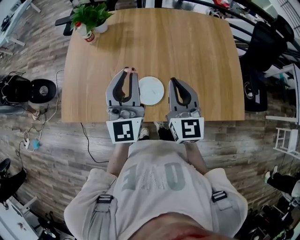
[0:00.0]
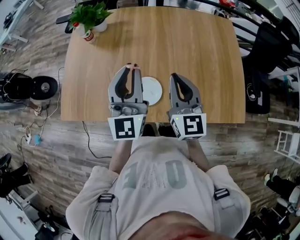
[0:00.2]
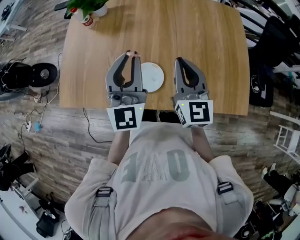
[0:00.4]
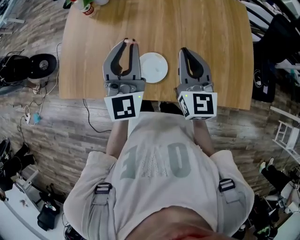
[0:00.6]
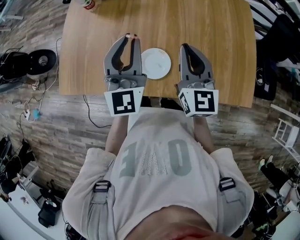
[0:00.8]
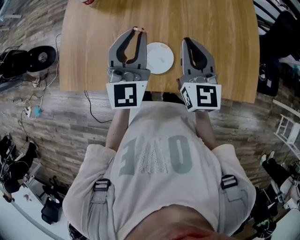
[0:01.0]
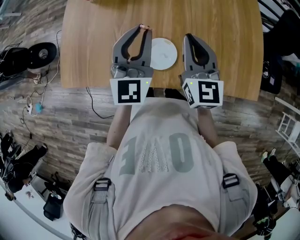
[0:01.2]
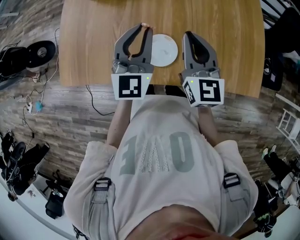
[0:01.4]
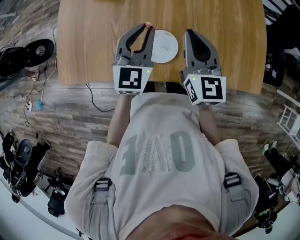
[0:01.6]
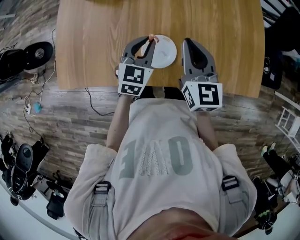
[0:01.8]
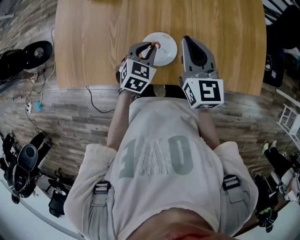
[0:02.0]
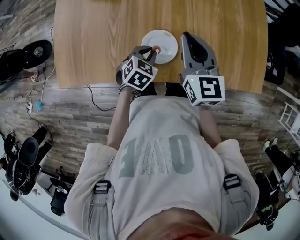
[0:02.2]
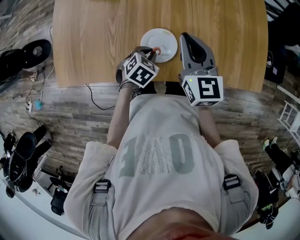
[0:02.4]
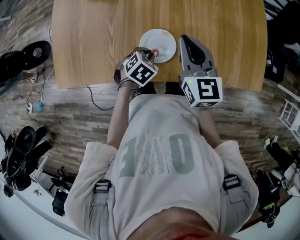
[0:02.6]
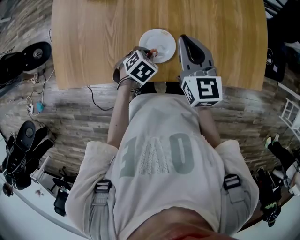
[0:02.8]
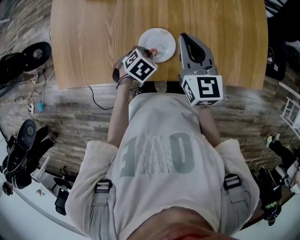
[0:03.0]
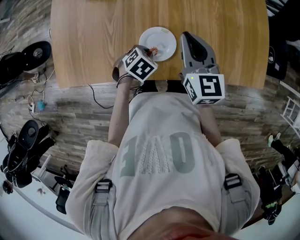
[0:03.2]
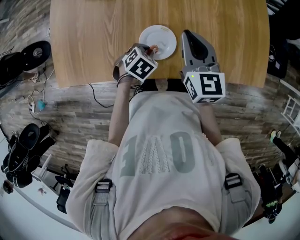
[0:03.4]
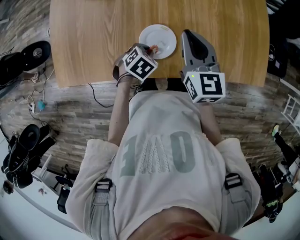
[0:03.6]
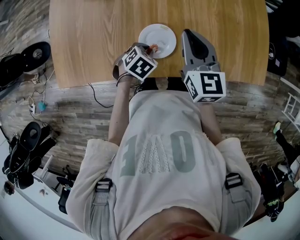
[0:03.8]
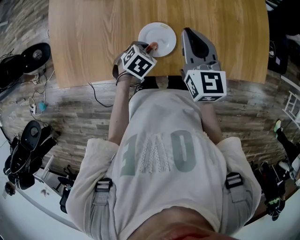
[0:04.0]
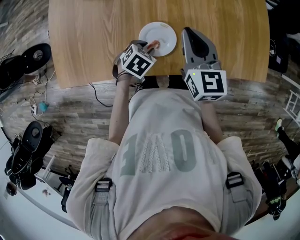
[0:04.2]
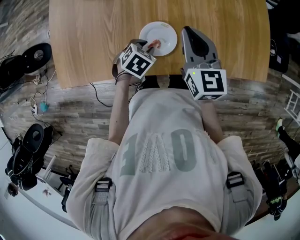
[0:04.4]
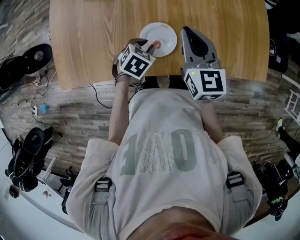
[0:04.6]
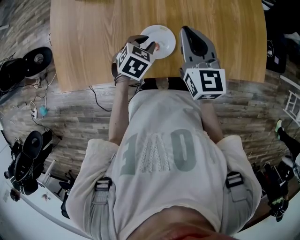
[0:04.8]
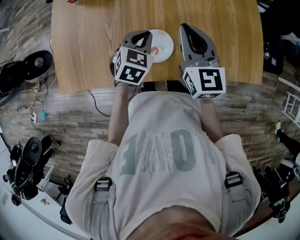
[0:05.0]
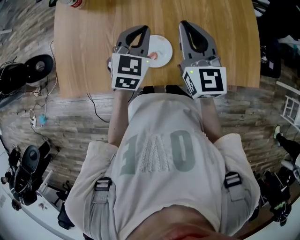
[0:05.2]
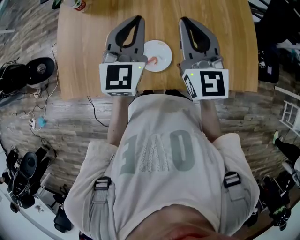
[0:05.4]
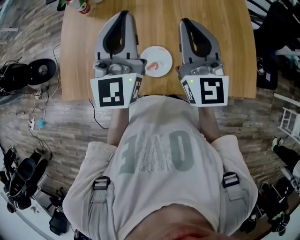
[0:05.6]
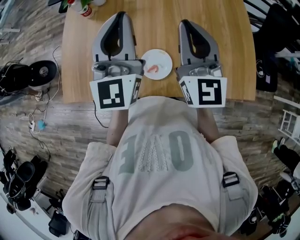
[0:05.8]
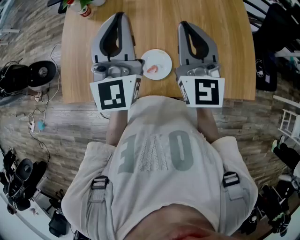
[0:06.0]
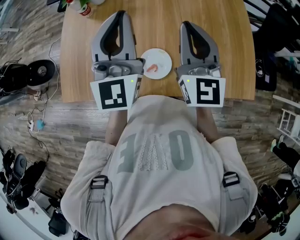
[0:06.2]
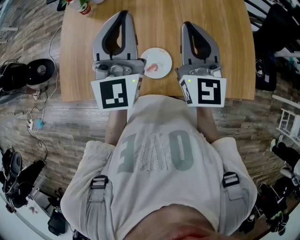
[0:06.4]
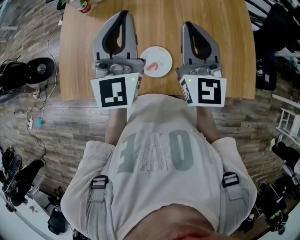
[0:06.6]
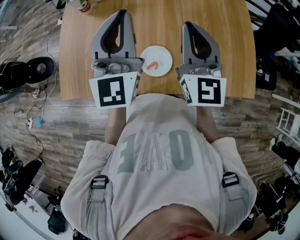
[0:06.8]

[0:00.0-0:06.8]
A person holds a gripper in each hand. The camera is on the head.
0.0 to 1.4 s: The right gripper ends up some 5 cm from where it was. Meanwhile the left gripper goes some 10 cm downward, and swivels roughly 20 degrees.
1.4 to 2.8 s: The right gripper heads downward, covering some 5 cm, while the left gripper travels downward by about 25 cm, and tilts its fingers some 70 degrees downward.
2.8 to 4.0 s: Both grippers stay put.
4.0 to 5.4 s: The right gripper heads upward, covering about 15 cm, and turns by roughly 20 degrees. The left gripper travels upward by some 30 cm, and points its fingers some 70 degrees further upward.
5.4 to 6.8 s: The left gripper heads upward, covering approximately 10 cm.

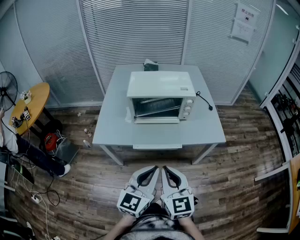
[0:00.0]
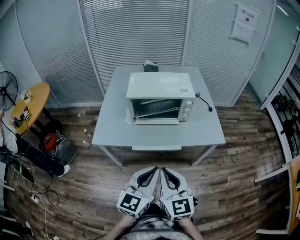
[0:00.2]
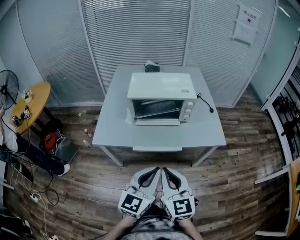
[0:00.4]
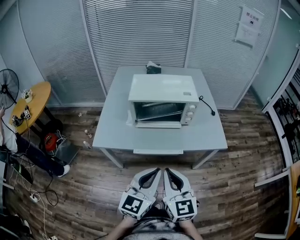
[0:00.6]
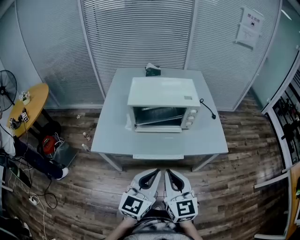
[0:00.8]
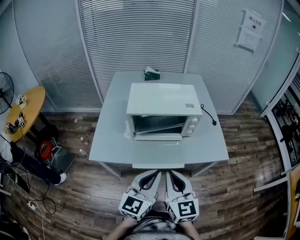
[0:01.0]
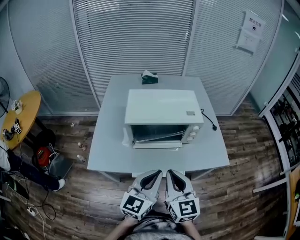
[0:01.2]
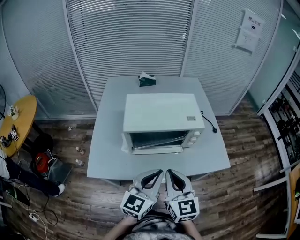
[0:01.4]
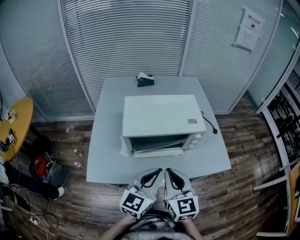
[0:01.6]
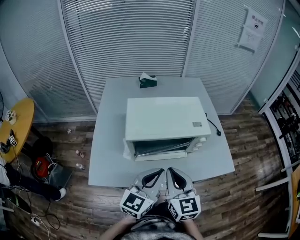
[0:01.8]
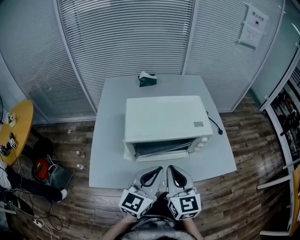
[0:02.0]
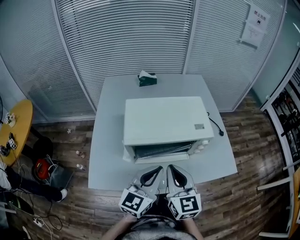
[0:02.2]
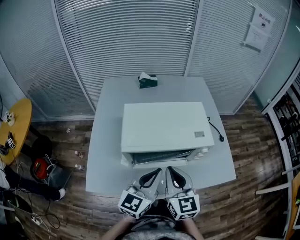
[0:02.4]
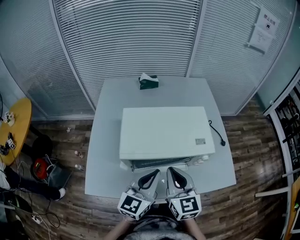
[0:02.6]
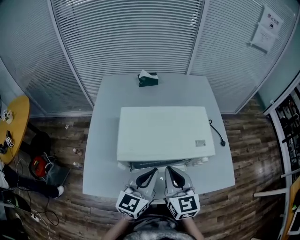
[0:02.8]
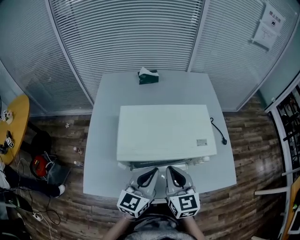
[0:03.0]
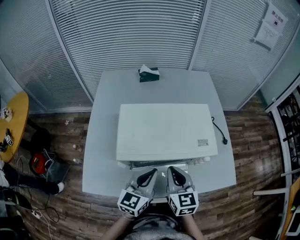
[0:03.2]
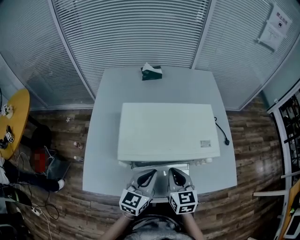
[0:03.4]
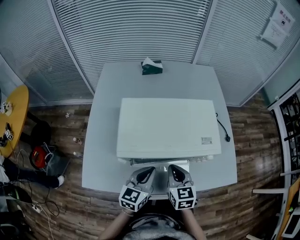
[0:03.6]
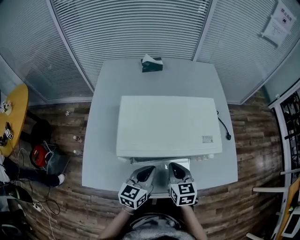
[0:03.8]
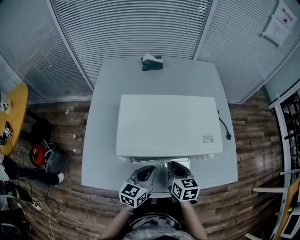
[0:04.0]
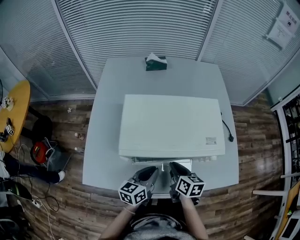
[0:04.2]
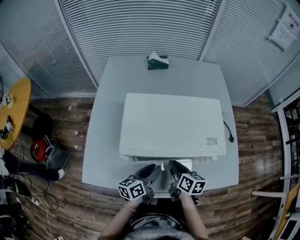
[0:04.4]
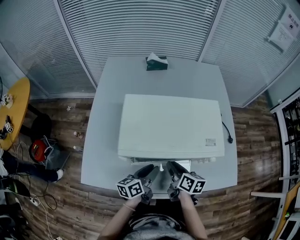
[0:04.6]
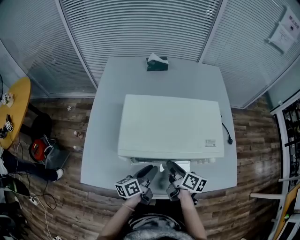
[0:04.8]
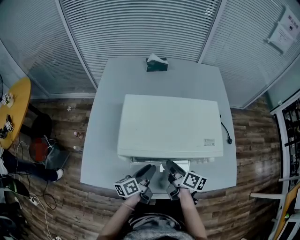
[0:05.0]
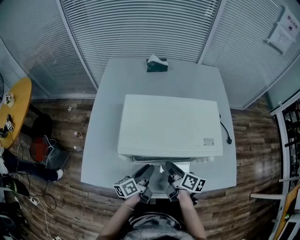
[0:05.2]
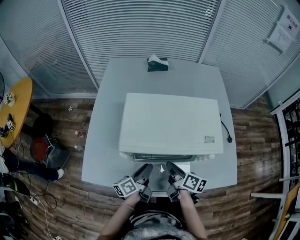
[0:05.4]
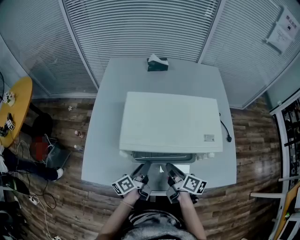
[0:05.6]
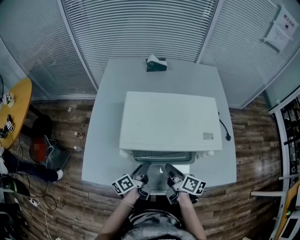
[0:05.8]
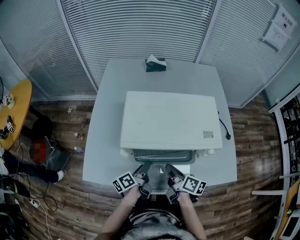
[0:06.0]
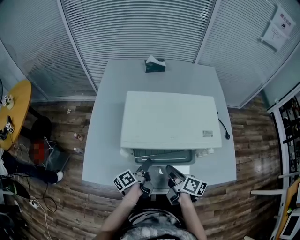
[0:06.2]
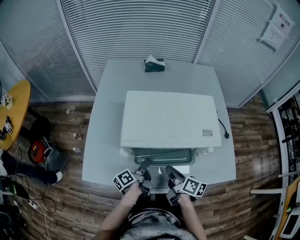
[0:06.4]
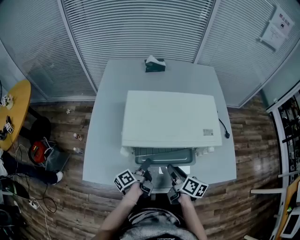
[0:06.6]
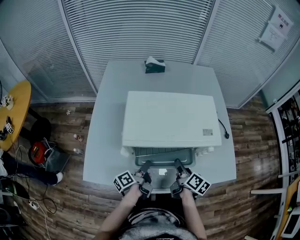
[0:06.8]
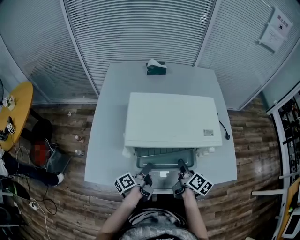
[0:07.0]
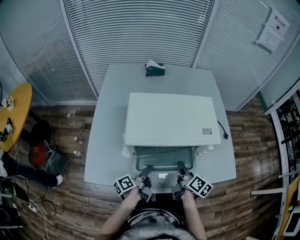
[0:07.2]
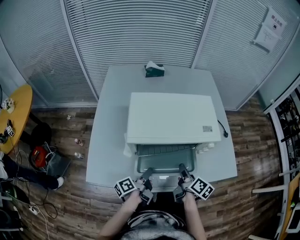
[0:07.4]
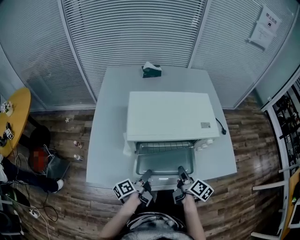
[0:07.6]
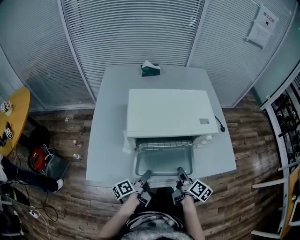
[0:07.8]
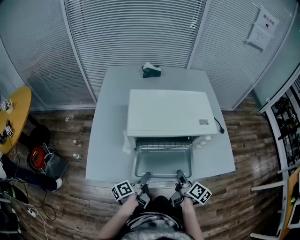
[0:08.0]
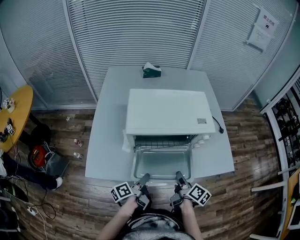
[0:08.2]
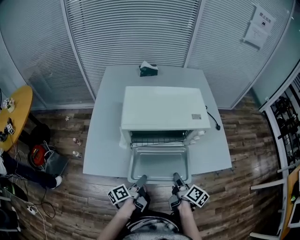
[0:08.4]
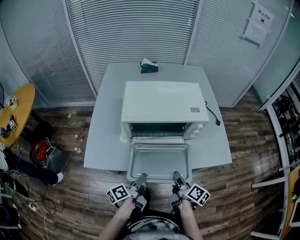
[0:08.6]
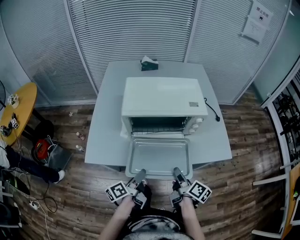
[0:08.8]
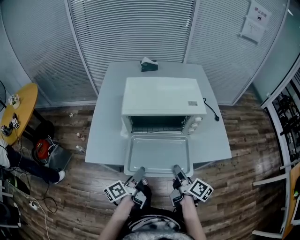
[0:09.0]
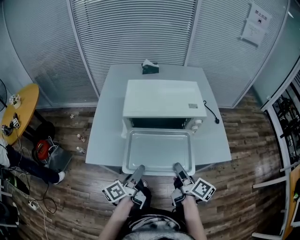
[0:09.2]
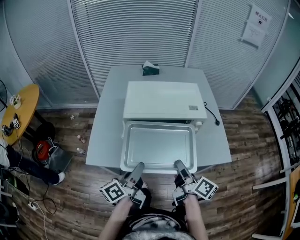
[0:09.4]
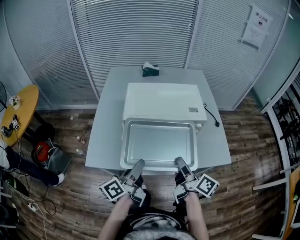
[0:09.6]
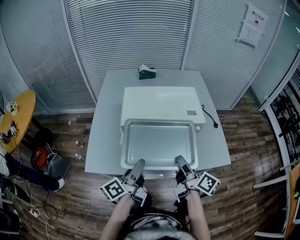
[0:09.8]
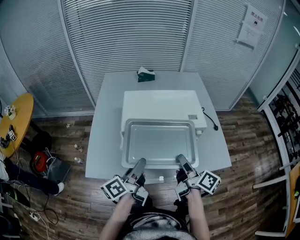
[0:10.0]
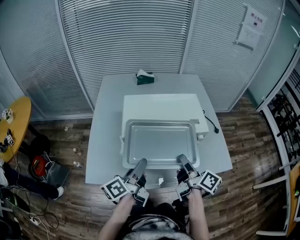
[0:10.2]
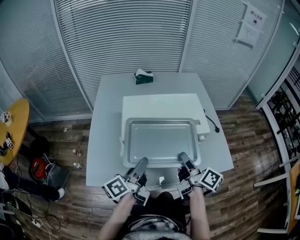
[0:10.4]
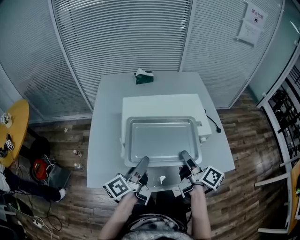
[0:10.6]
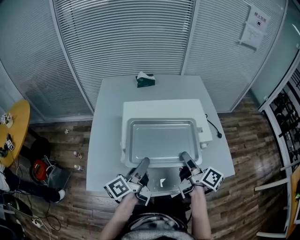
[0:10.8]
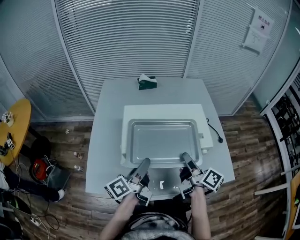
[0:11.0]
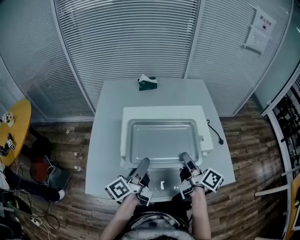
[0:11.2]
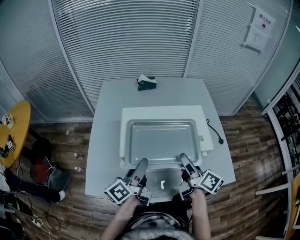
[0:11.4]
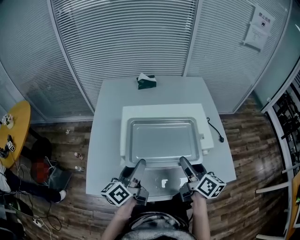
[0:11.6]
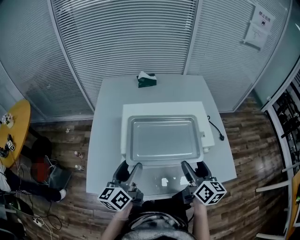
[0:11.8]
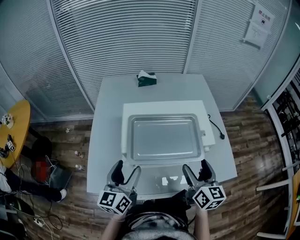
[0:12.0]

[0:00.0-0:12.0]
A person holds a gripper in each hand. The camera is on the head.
0.0 to 1.6 s: The two grippers go some 25 cm forward.
1.6 to 3.0 s: The grippers both shift forward by about 15 cm.
3.0 to 4.4 s: The grippers both shift downward by roughly 15 cm. The left gripper rolls counterclockwise, seen from behind, by about 40 degrees, and opens its fingers. The right gripper swivels some 40 degrees.
4.4 to 6.0 s: The left gripper moves roughly 5 cm, and changes its angle by about 30 degrees.
6.0 to 7.6 s: The left gripper is displaced backward by roughly 10 cm. The right gripper goes approximately 10 cm to the right and backward, and turns by about 20 degrees.
7.6 to 9.0 s: The grippers both shift backward and upward by about 15 cm.
9.0 to 10.4 s: The grippers both shift forward and upward by approximately 15 cm.
10.4 to 12.0 s: The right gripper reaches some 10 cm forward, then returns, twists roughly 40 degrees counterclockwise, seen from behind, and opens; the left gripper heads to the left, covering roughly 5 cm, twists some 50 degrees clockwise, seen from behind, and opens up.

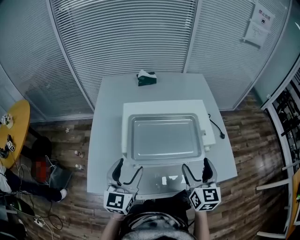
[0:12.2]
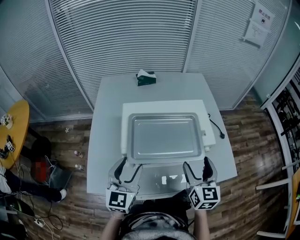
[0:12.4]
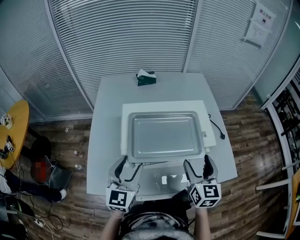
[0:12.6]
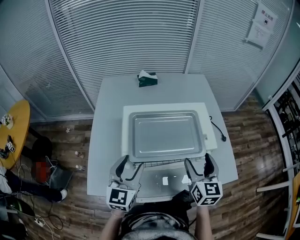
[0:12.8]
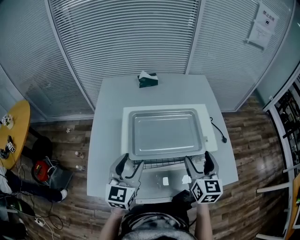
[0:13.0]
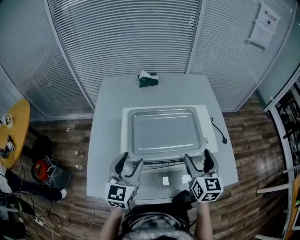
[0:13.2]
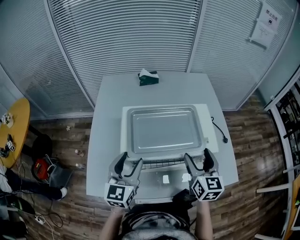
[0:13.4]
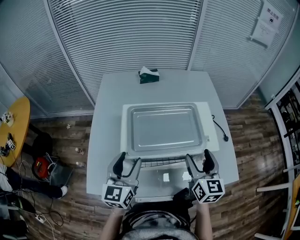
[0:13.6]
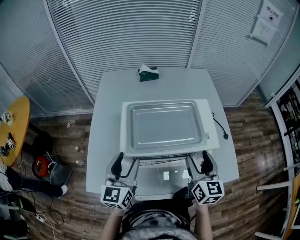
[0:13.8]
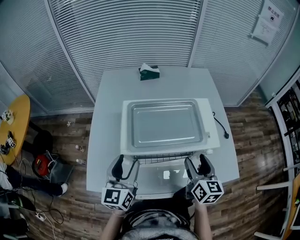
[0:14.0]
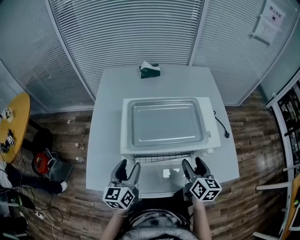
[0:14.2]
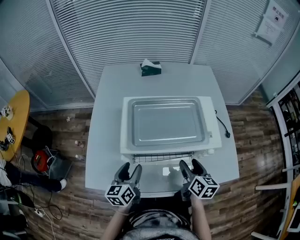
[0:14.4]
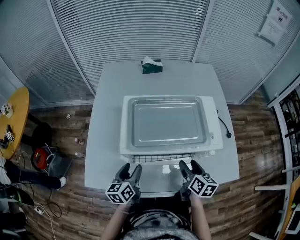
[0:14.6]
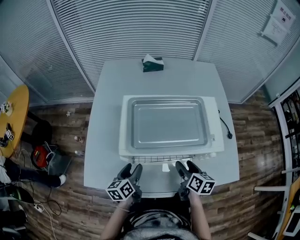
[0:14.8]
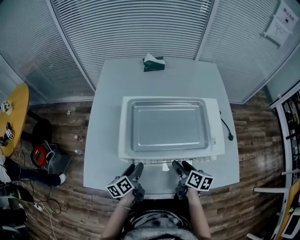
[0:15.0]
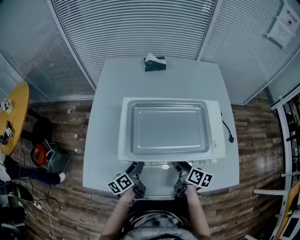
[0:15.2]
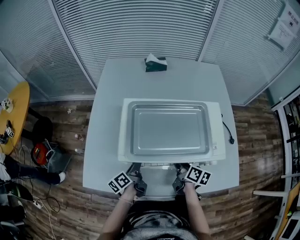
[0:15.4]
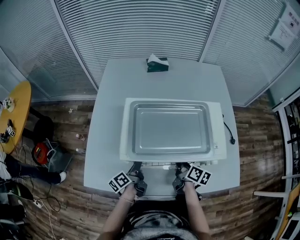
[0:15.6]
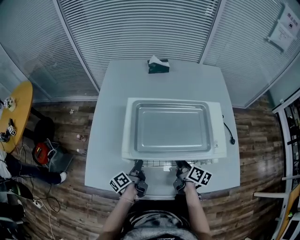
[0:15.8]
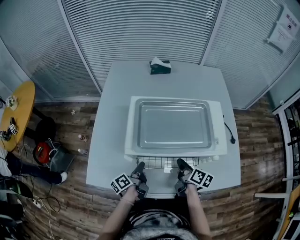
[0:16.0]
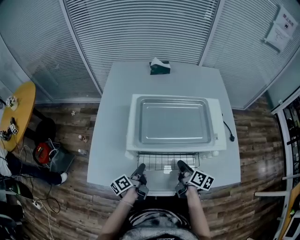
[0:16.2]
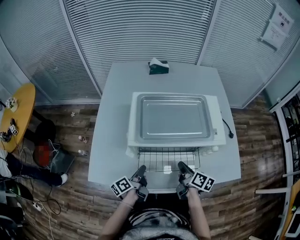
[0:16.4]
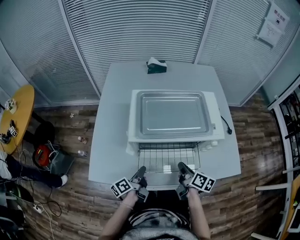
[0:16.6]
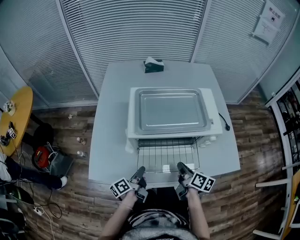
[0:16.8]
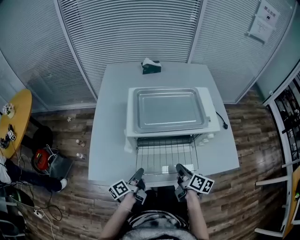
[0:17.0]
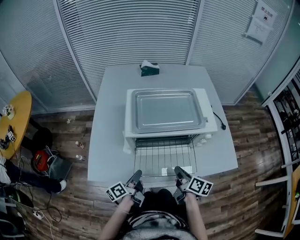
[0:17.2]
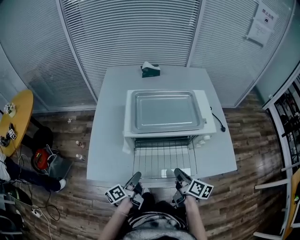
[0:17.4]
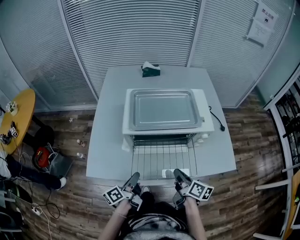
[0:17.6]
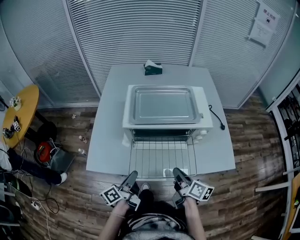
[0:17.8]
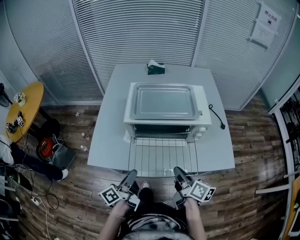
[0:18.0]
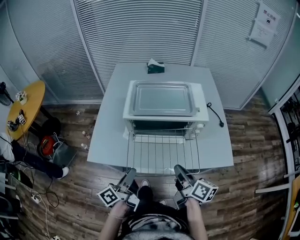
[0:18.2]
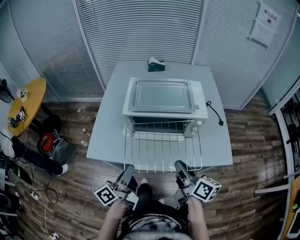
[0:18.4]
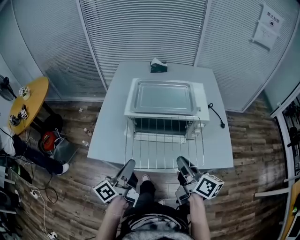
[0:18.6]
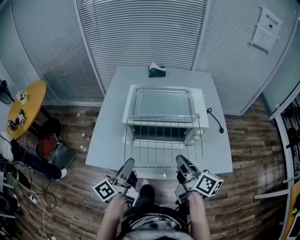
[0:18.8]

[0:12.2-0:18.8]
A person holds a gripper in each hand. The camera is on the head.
12.2 to 13.8 s: The right gripper heads forward, covering about 5 cm.
13.8 to 15.4 s: The grippers both shift downward by about 20 cm. The right gripper rolls clockwise, seen from behind, by roughly 40 degrees; the left gripper rotates around the line of its fingers by roughly 60 degrees, counterclockwise from behind.
15.4 to 17.2 s: The two grippers go approximately 15 cm backward. The right gripper closes up.
17.2 to 18.8 s: The grippers both shift upward by roughly 20 cm. The left gripper turns by roughly 20 degrees, while the right gripper rotates roughly 20 degrees.
